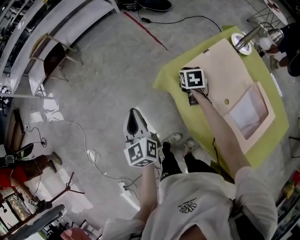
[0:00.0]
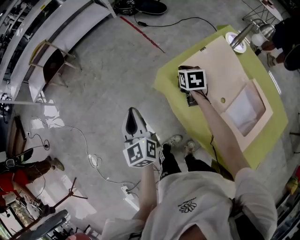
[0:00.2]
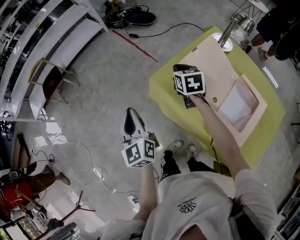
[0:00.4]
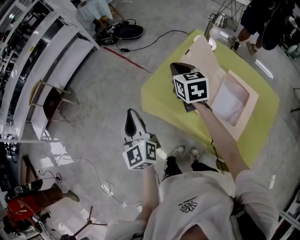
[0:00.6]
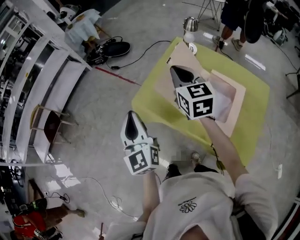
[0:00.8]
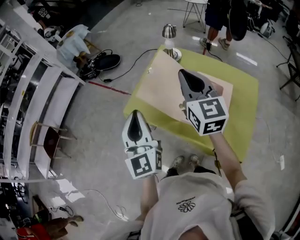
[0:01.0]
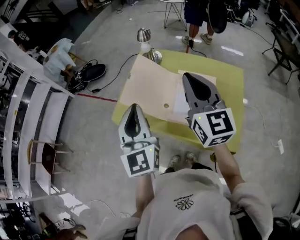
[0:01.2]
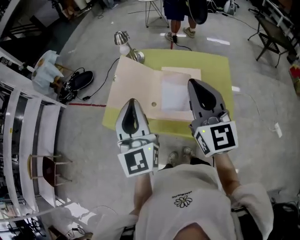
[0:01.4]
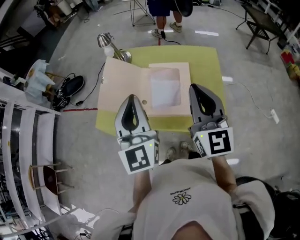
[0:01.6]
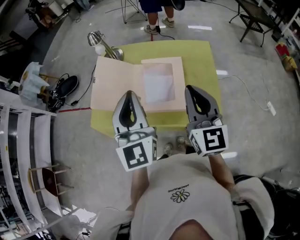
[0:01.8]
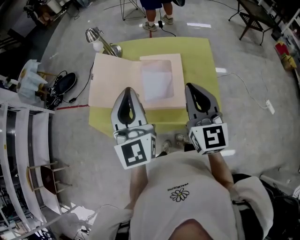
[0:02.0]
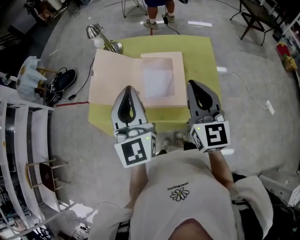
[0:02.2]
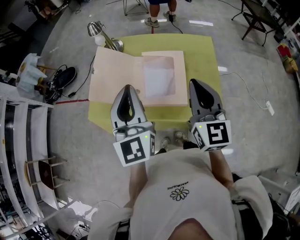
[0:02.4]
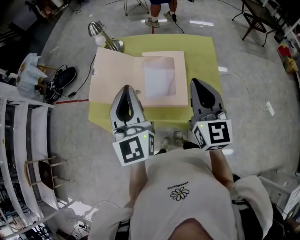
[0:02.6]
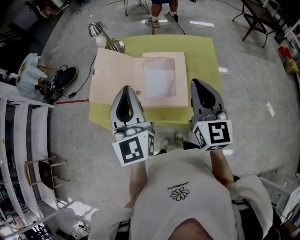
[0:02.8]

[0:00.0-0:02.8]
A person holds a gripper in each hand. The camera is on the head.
0:00.0 to 0:01.4: The right gripper moves approximately 60 cm, and tips its fingers upward by roughly 60 degrees; the left gripper changes place by about 40 cm, and changes its angle by some 60 degrees.
0:01.4 to 0:02.8: The right gripper shifts roughly 10 cm to the right and downward.

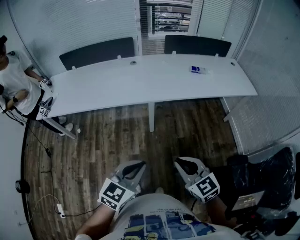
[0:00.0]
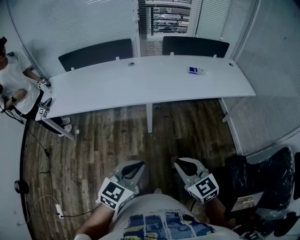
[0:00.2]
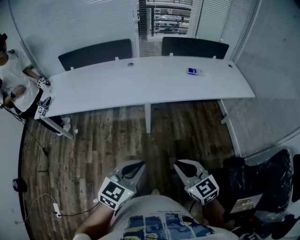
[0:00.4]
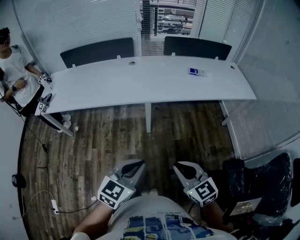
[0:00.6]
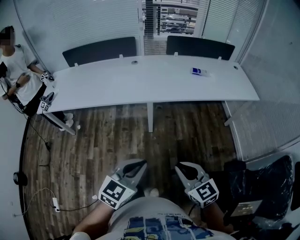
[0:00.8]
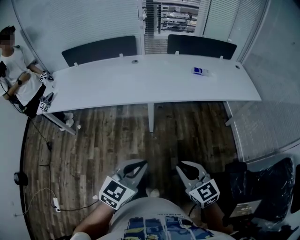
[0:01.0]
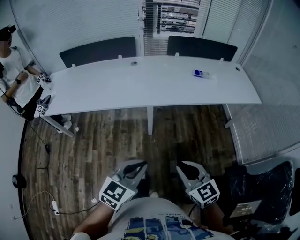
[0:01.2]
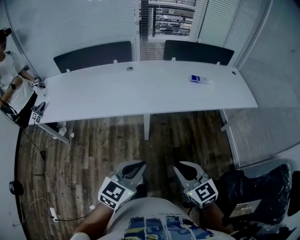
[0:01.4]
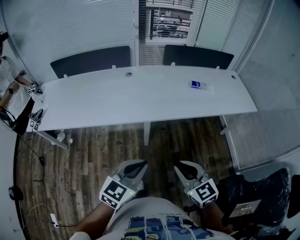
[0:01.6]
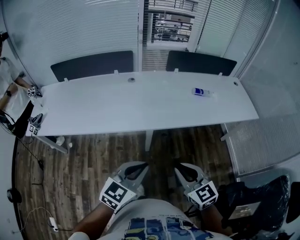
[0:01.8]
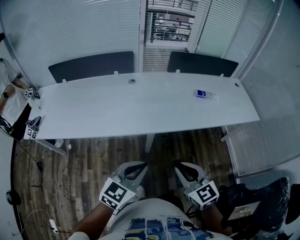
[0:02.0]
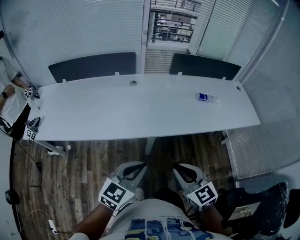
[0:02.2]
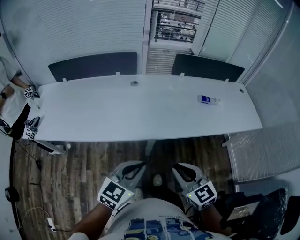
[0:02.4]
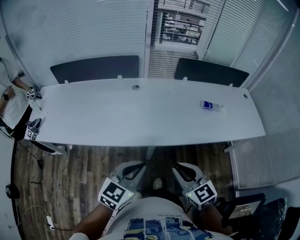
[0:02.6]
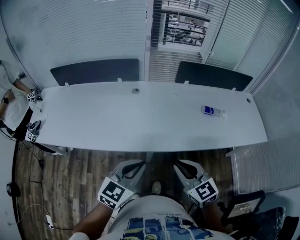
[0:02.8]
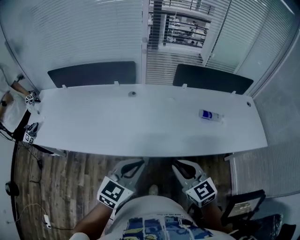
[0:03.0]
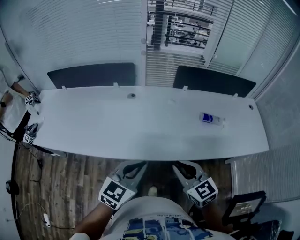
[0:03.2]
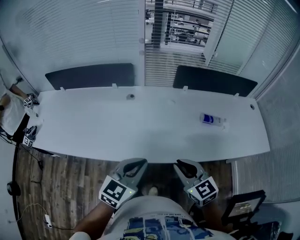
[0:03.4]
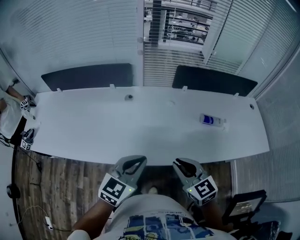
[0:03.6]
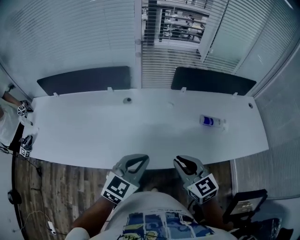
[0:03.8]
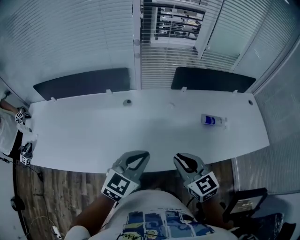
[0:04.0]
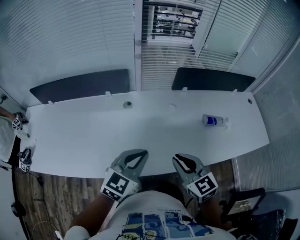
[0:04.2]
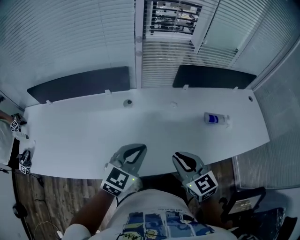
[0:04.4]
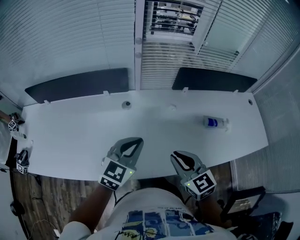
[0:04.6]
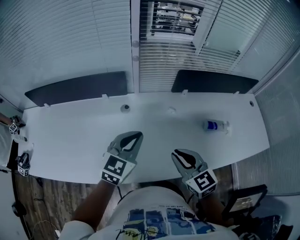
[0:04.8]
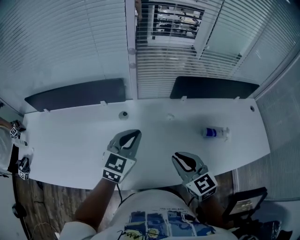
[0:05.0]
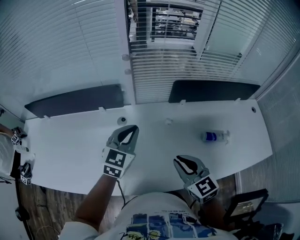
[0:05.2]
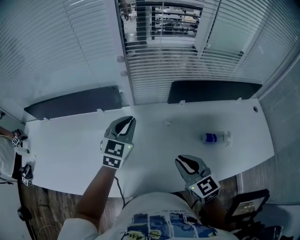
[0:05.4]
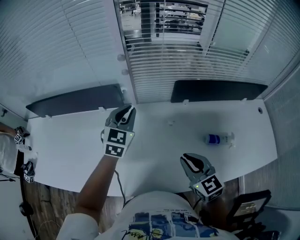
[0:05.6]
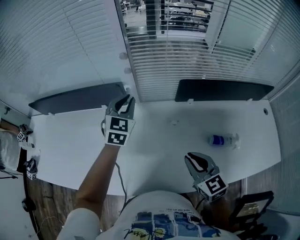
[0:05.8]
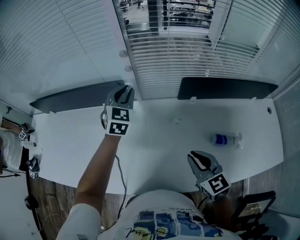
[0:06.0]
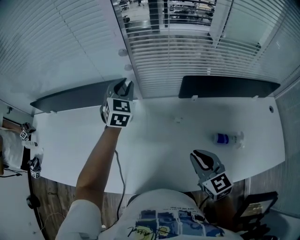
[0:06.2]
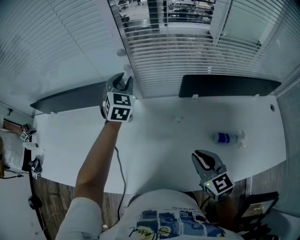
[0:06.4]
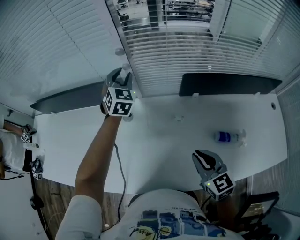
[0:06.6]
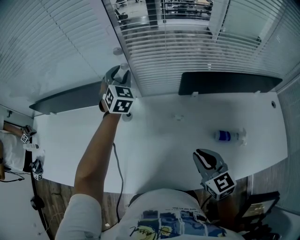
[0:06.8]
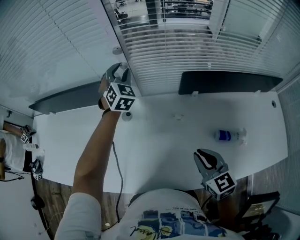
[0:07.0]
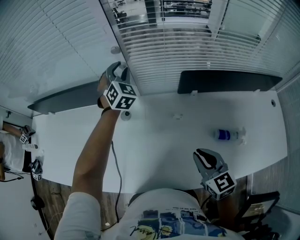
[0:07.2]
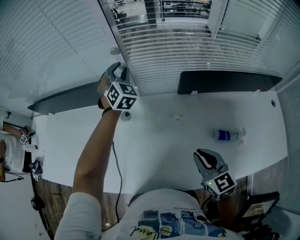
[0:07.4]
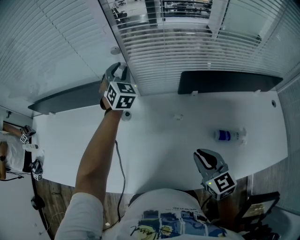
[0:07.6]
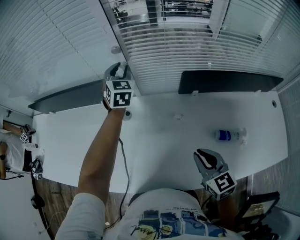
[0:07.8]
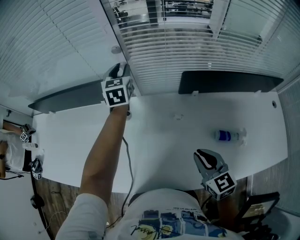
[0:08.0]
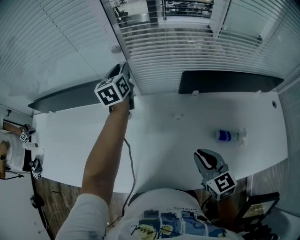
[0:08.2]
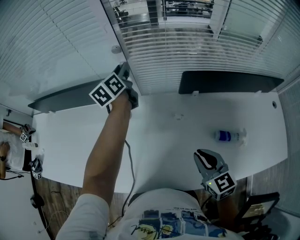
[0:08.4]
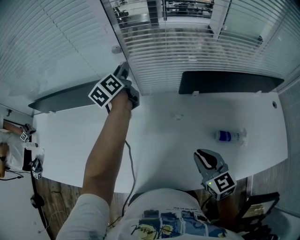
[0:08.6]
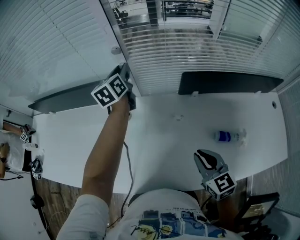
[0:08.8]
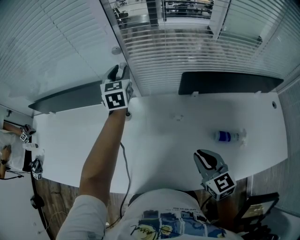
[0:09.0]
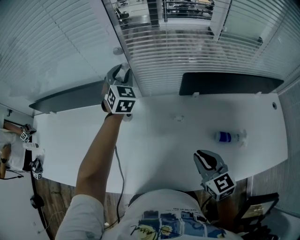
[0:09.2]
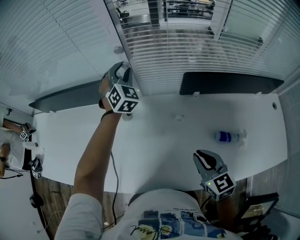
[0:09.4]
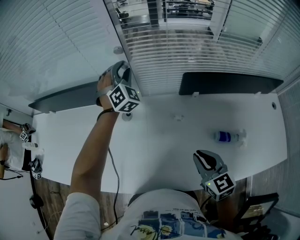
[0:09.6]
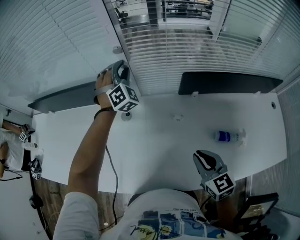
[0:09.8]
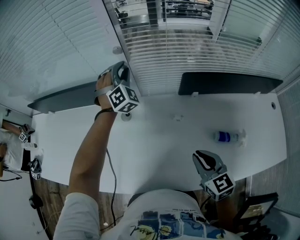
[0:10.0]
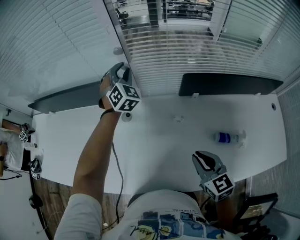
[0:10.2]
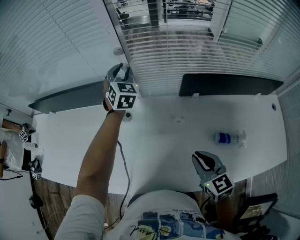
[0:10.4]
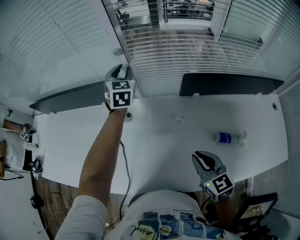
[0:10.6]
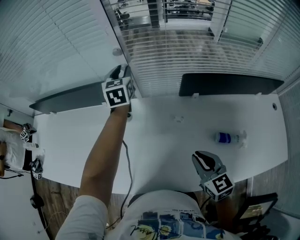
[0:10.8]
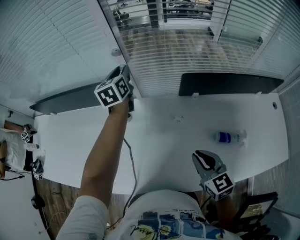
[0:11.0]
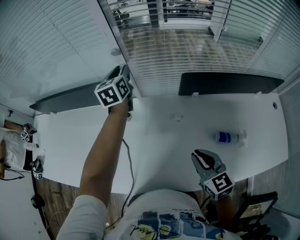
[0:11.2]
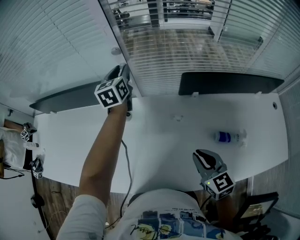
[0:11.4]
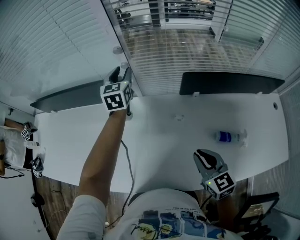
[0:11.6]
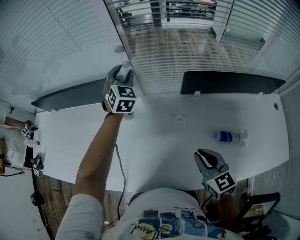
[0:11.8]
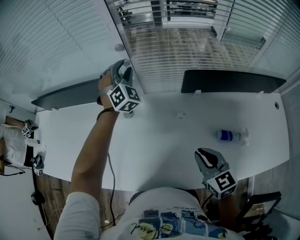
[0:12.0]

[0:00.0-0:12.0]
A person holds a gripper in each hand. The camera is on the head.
0:00.0 to 0:01.6: Both grippers travel together forward, roughly 15 cm.
0:01.6 to 0:03.0: The two grippers go about 25 cm forward.
0:03.0 to 0:04.4: Both grippers travel together forward, some 20 cm.
0:04.4 to 0:06.0: The right gripper moves forward and to the right, about 20 cm, while the left gripper heads forward, covering approximately 35 cm, and swivels about 30 degrees.
0:06.0 to 0:07.6: The left gripper travels forward by about 10 cm.
0:07.6 to 0:09.0: The left gripper changes its angle by about 30 degrees.
0:09.0 to 0:10.4: The left gripper turns by some 20 degrees.
0:10.4 to 0:12.0: The left gripper rotates about 30 degrees.

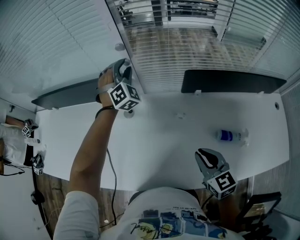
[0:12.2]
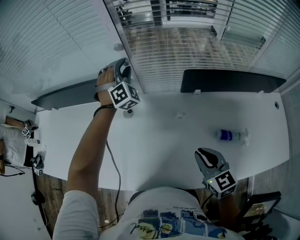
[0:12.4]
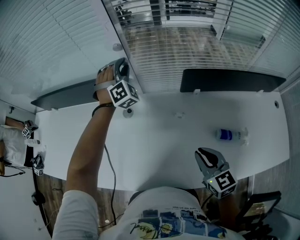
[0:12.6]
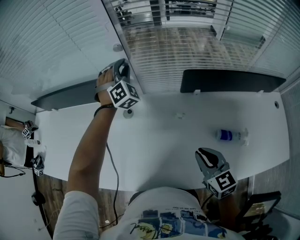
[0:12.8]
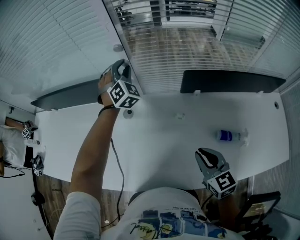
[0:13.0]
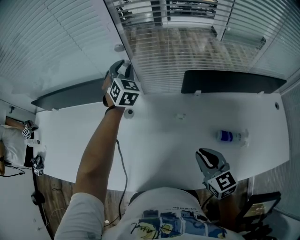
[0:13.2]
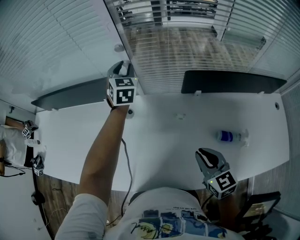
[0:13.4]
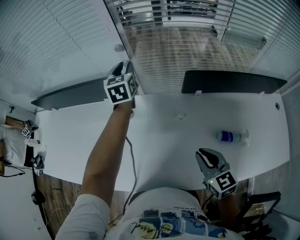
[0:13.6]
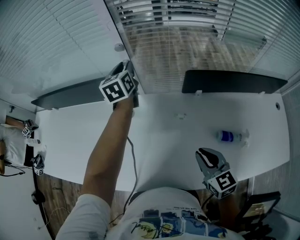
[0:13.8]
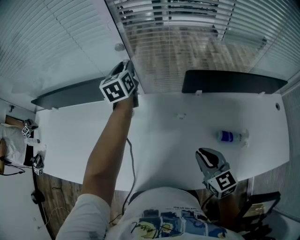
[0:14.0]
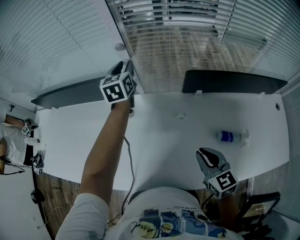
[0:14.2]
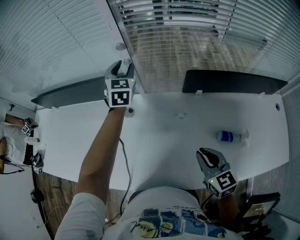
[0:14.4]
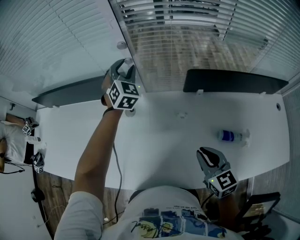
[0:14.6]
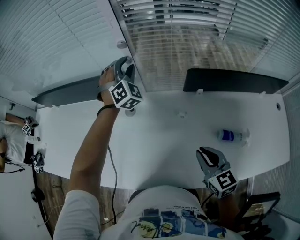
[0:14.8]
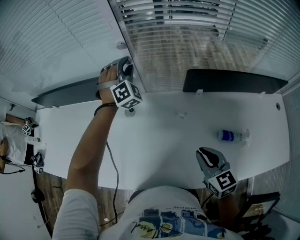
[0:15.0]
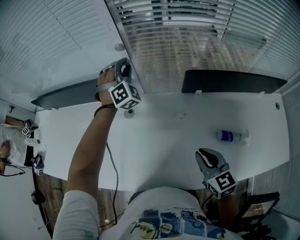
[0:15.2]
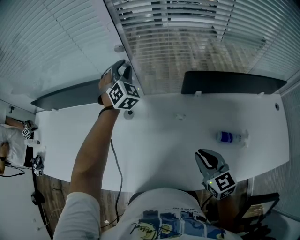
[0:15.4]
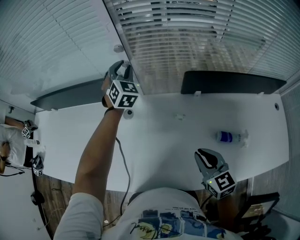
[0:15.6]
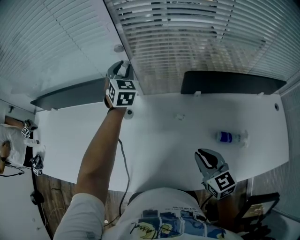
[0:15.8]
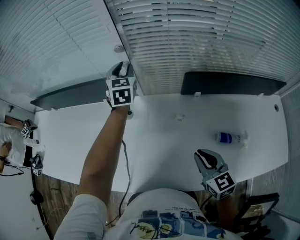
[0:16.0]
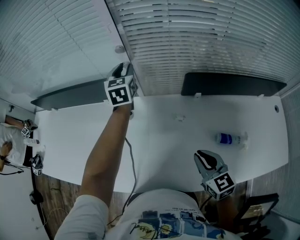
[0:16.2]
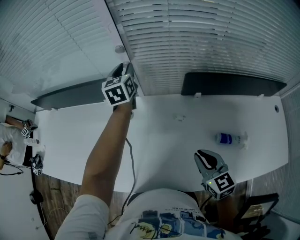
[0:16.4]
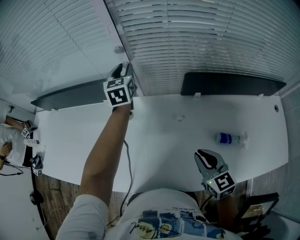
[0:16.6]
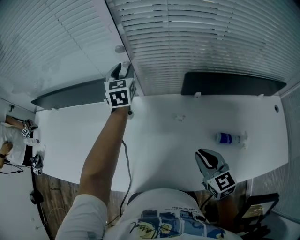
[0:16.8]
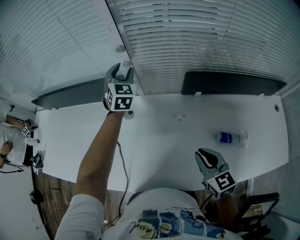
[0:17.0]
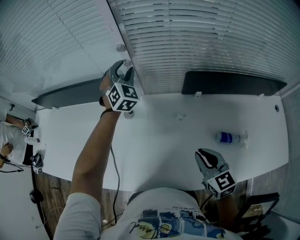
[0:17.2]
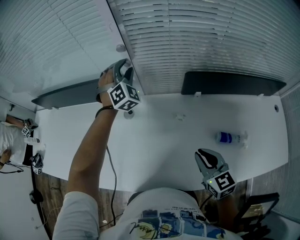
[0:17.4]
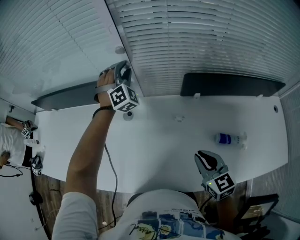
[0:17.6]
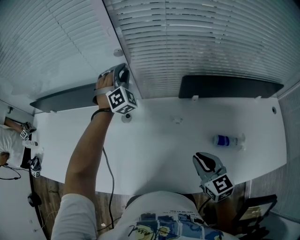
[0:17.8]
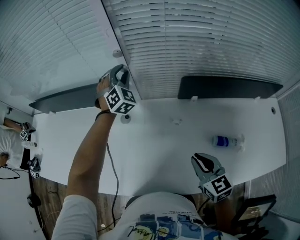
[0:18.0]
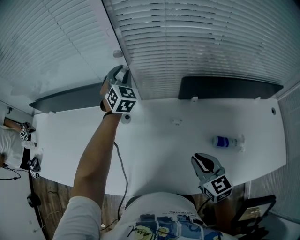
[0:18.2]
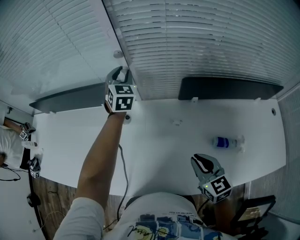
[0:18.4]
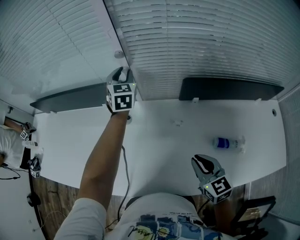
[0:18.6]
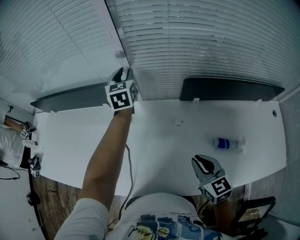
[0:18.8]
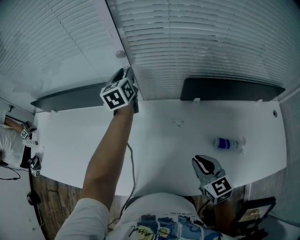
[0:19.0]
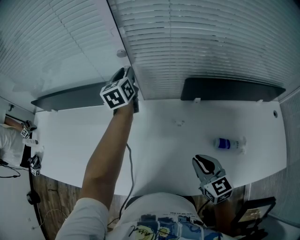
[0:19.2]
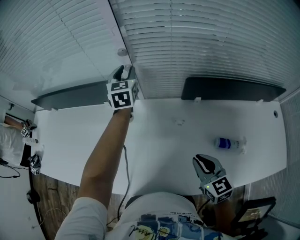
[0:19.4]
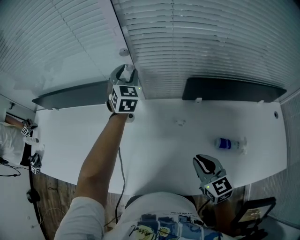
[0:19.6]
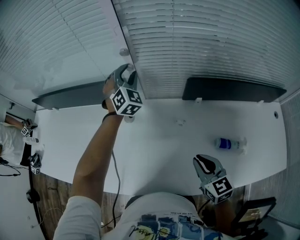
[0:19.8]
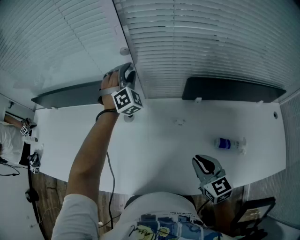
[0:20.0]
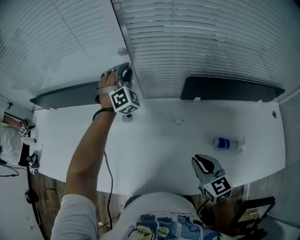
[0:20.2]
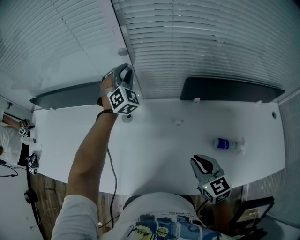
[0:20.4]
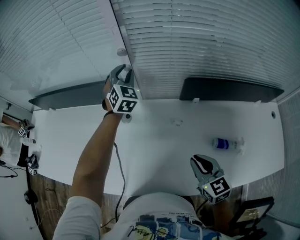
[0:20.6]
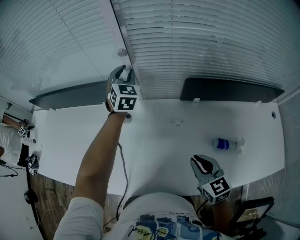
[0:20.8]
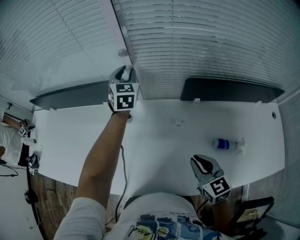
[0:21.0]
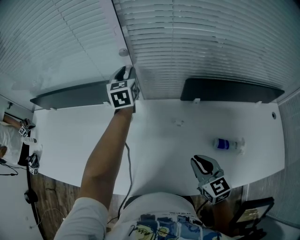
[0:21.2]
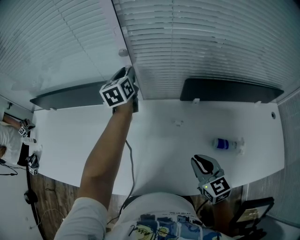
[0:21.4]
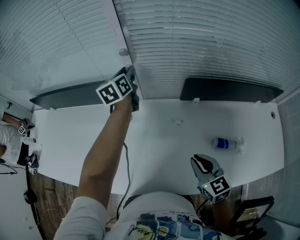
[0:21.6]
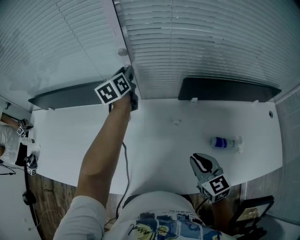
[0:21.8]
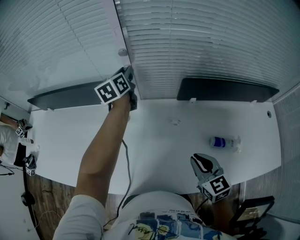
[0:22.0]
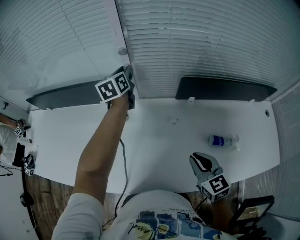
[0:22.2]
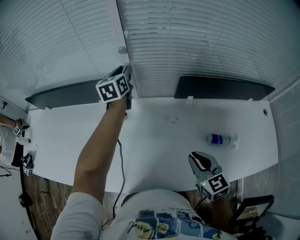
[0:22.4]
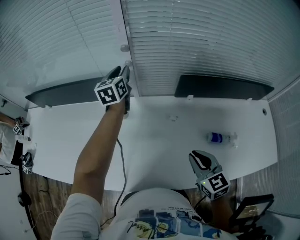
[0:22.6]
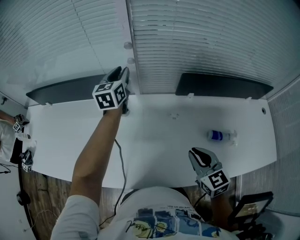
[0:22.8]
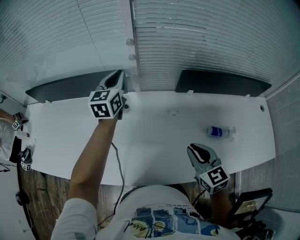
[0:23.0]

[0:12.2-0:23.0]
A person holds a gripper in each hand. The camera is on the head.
0:12.2 to 0:13.8: The left gripper rotates around the line of its fingers by approximately 80 degrees, counterclockwise from behind.
0:13.8 to 0:15.2: The left gripper rotates around the line of its fingers by roughly 80 degrees, clockwise from behind.
0:15.2 to 0:16.8: The left gripper rolls counterclockwise, seen from behind, by roughly 60 degrees.
0:18.4 to 0:20.0: The left gripper rotates around the line of its fingers by approximately 40 degrees, clockwise from behind.
0:20.0 to 0:21.4: The left gripper rolls counterclockwise, seen from behind, by some 80 degrees.
0:21.4 to 0:23.0: The right gripper moves some 5 cm, while the left gripper heads backward, covering roughly 10 cm, and closes up.
